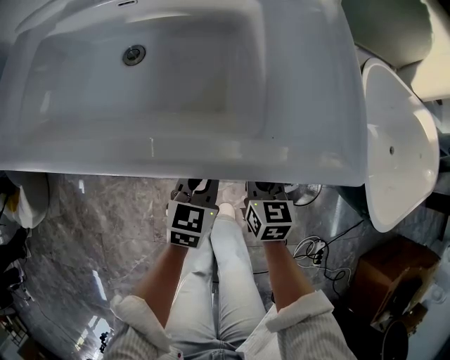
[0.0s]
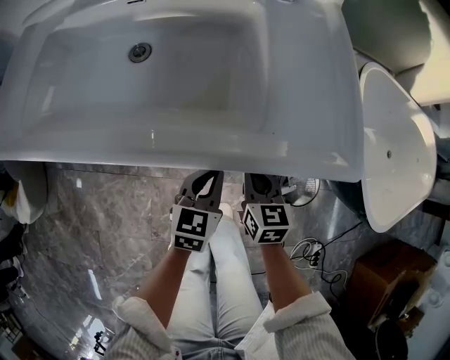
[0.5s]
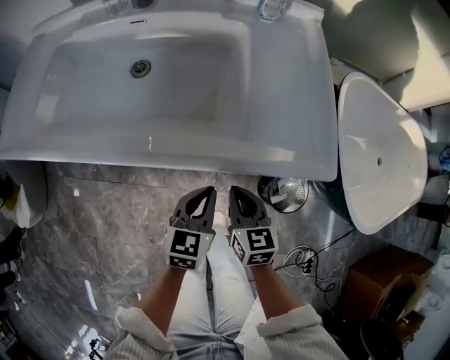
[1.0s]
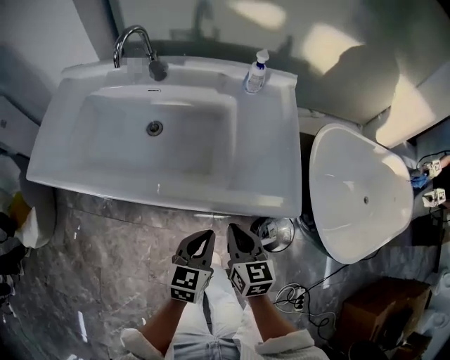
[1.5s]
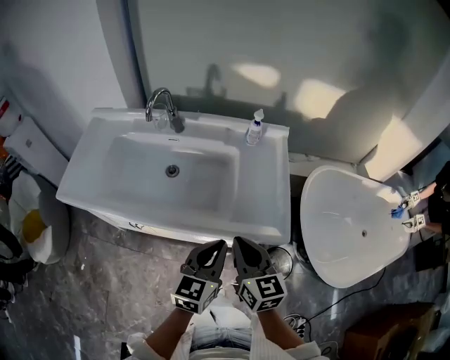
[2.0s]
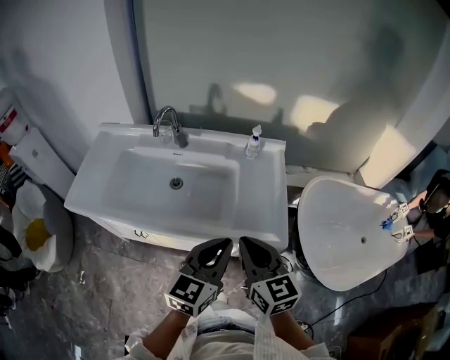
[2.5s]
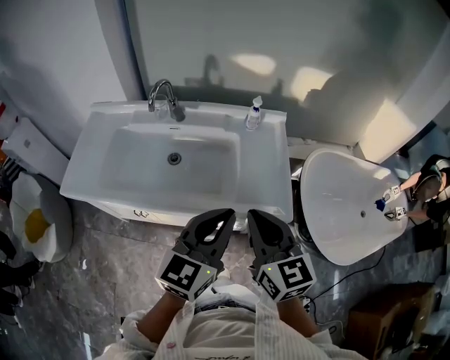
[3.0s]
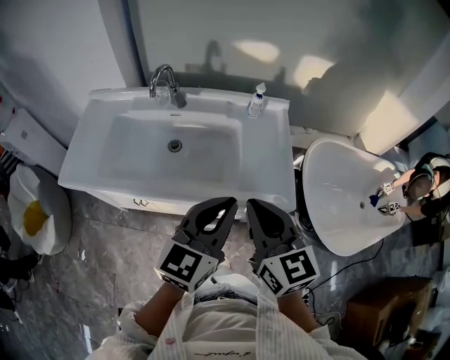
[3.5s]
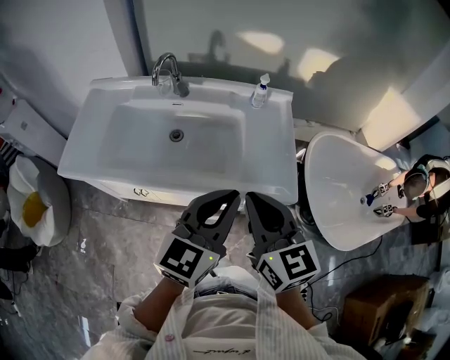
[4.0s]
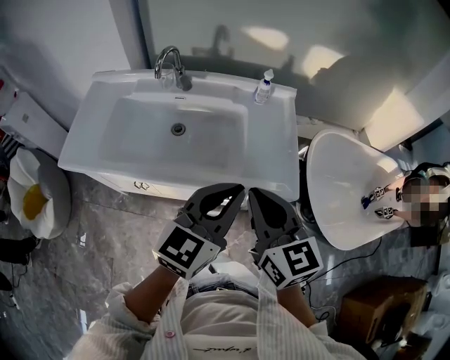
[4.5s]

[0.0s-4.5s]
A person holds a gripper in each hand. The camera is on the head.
0.0s to 2.0s: The two grippers go approximately 30 cm upward. The right gripper rotates some 20 degrees.
2.0s to 4.5s: The two grippers go some 15 cm upward.

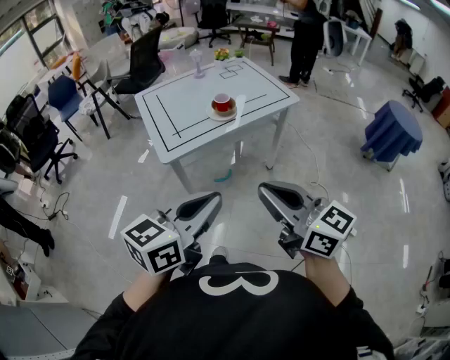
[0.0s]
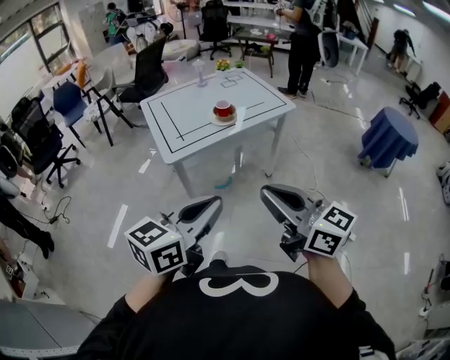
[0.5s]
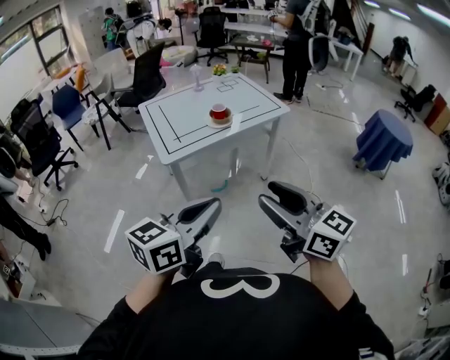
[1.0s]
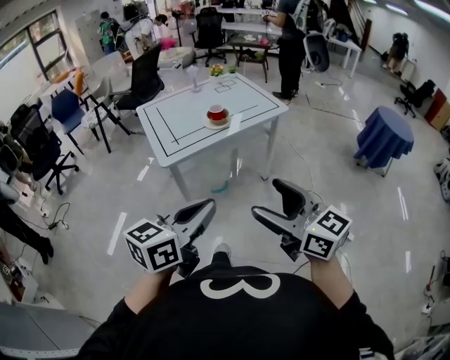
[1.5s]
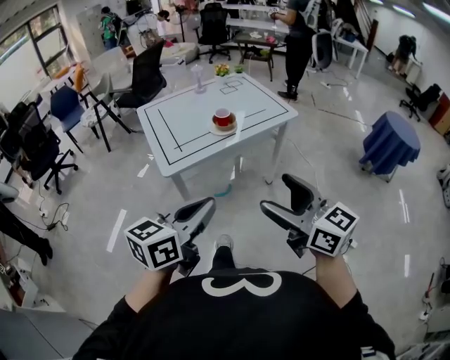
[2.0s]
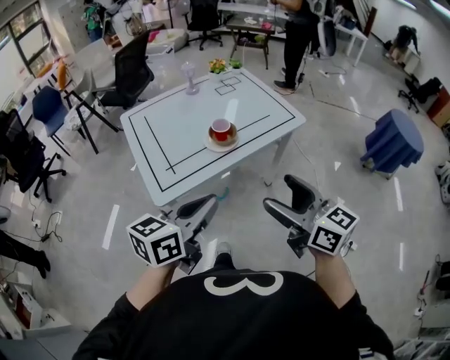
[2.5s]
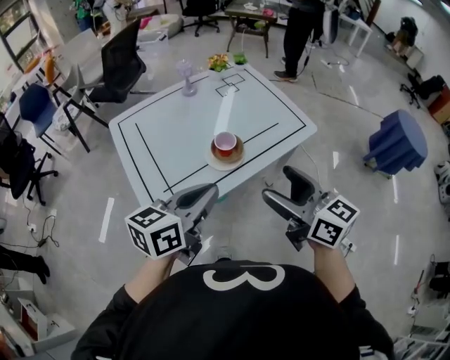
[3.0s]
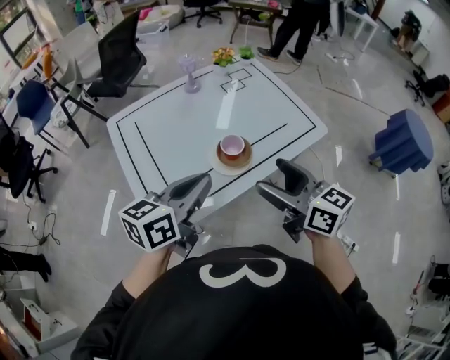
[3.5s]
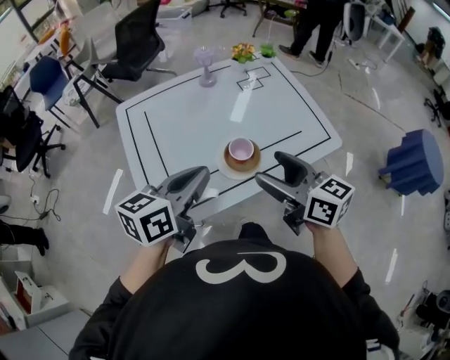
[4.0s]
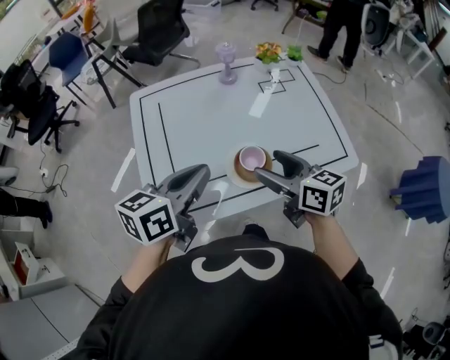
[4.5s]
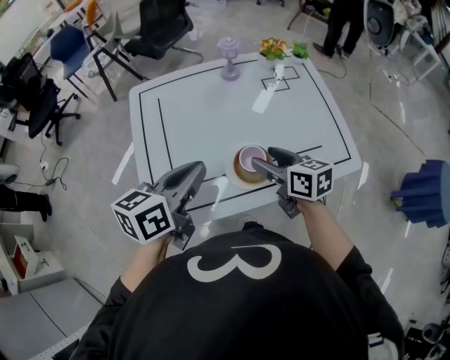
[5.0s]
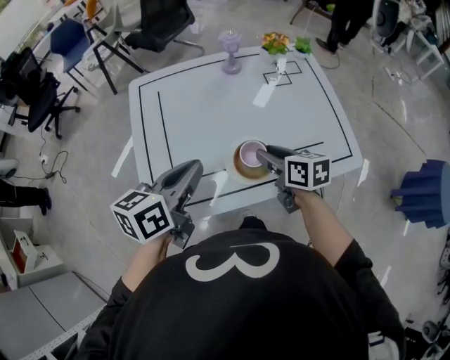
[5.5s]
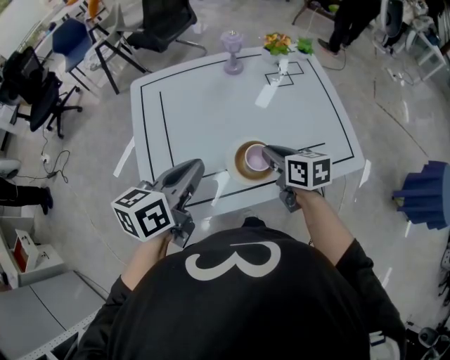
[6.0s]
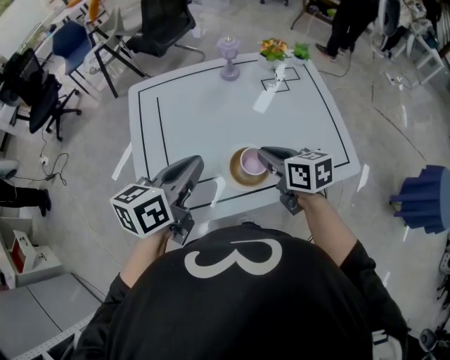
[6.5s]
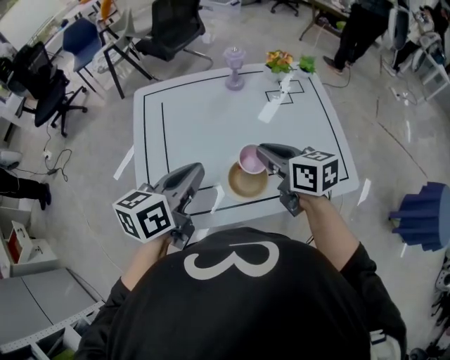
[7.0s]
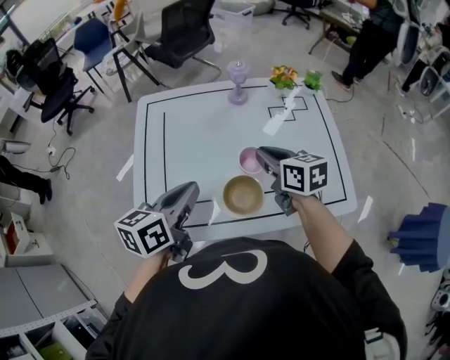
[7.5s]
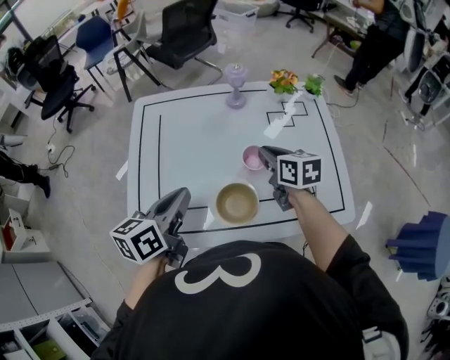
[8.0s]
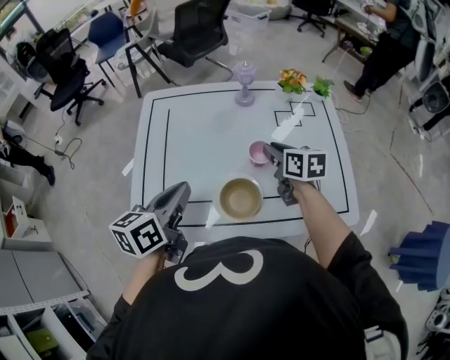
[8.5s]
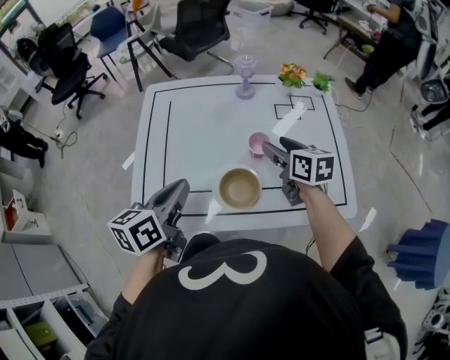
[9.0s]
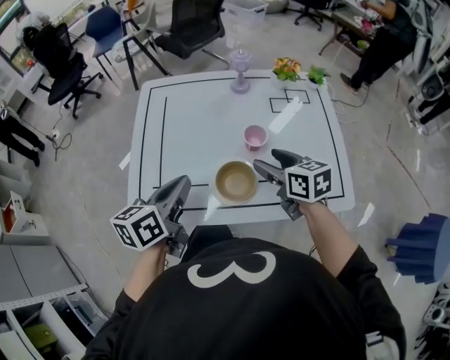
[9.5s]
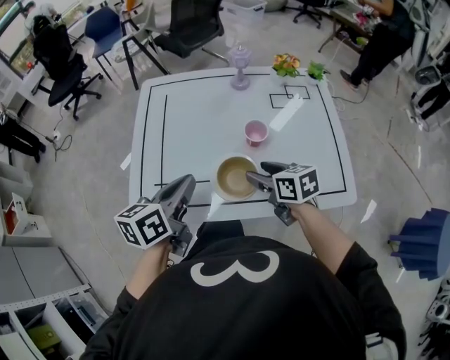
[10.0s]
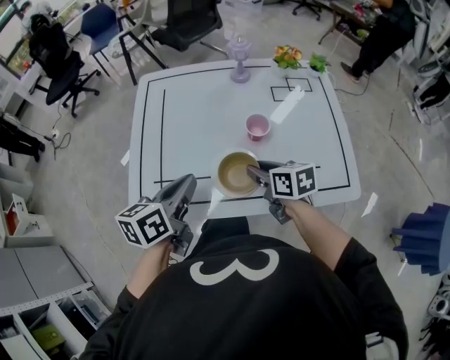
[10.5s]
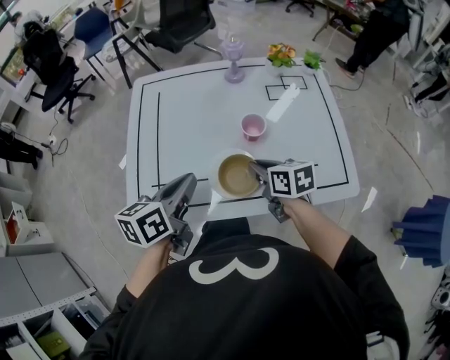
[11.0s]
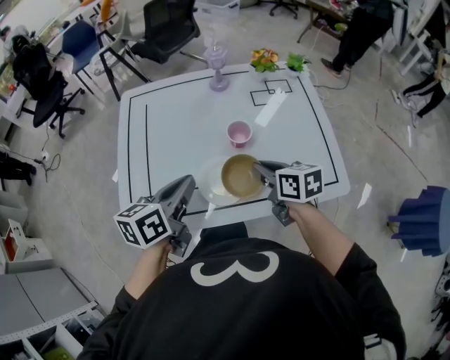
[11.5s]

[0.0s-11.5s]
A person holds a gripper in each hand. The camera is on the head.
0.0s to 2.0s: The right gripper goes backward and returns, roughly 10 cm each way, and opens its fingers; the left gripper goes backward and returns, approximately 10 cm each way.
2.0s to 4.0s: Both grippers are carried forward, about 40 cm.
4.0s to 6.0s: The right gripper travels downward and forward by about 20 cm, turns by approximately 30 degrees, and closes up, while the left gripper is displaced forward by approximately 5 cm.
6.0s to 7.5s: The right gripper travels forward and upward by approximately 10 cm.
7.5s to 9.5s: The right gripper moves some 5 cm, and opens.
9.5s to 11.5s: The right gripper closes its fingers.

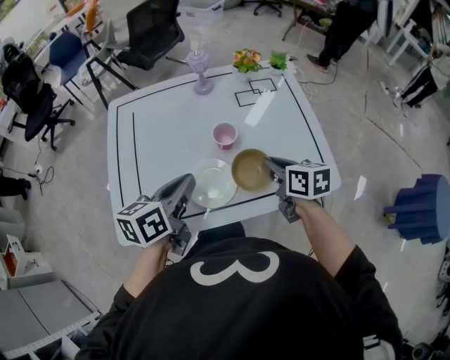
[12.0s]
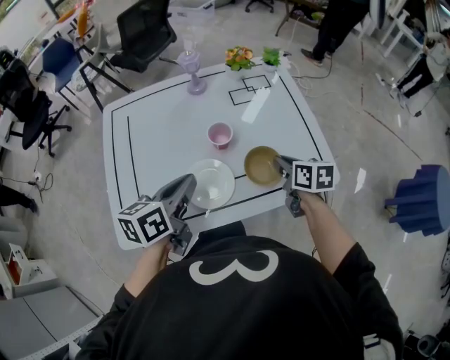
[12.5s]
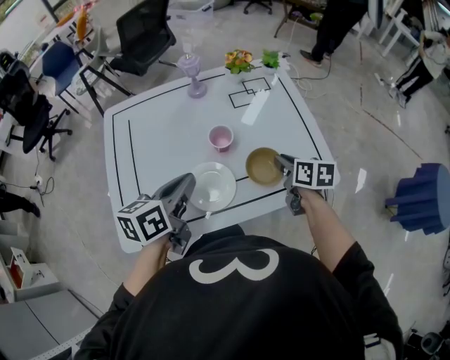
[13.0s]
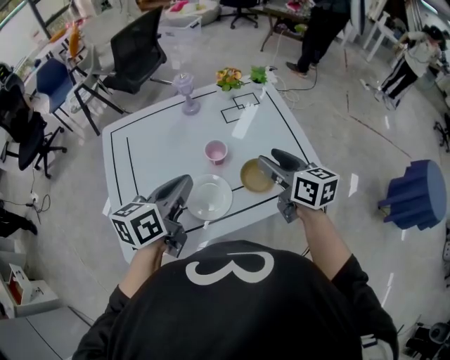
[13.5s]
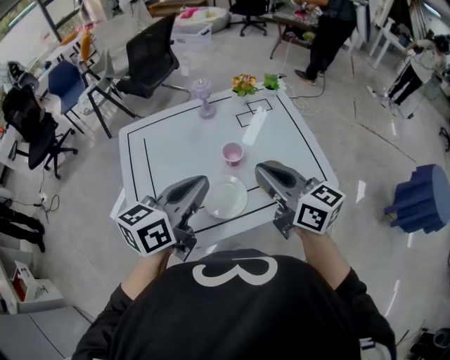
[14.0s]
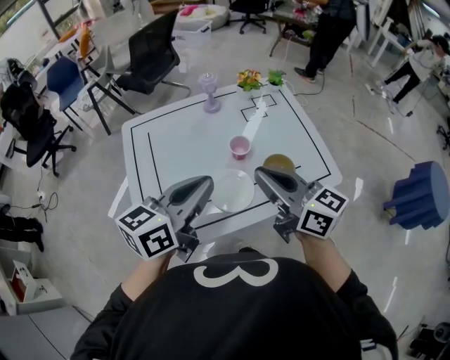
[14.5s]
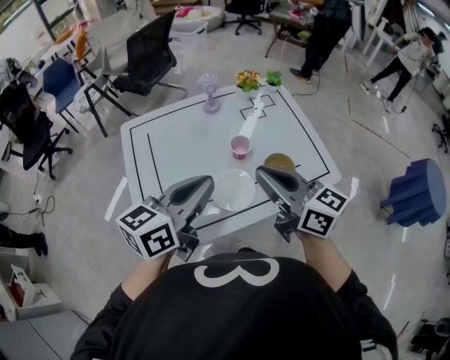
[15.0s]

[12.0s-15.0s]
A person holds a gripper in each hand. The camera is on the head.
12.0s to 13.5s: The right gripper moves upward, roughly 10 cm, and opens its fingers; the left gripper shifts some 5 cm upward.
13.5s to 15.0s: The left gripper shifts approximately 10 cm upward and backward, while the right gripper is displaced to the left, backward and upward by some 20 cm, changes its angle by approximately 20 degrees, and closes up.

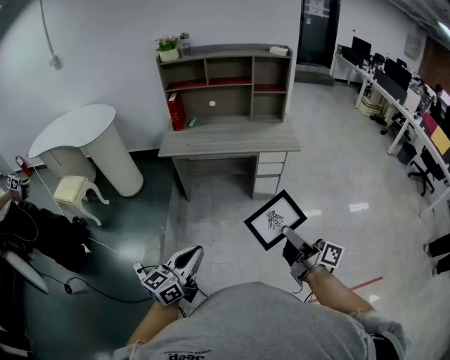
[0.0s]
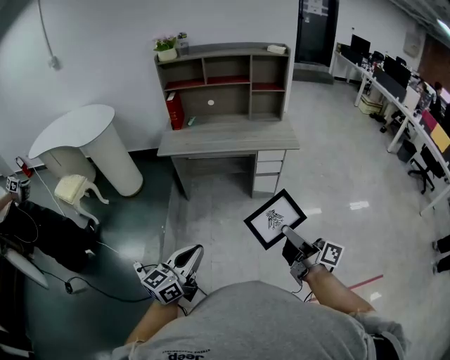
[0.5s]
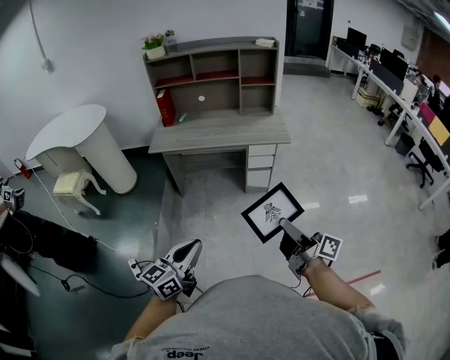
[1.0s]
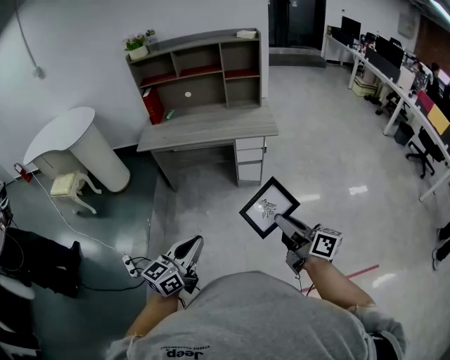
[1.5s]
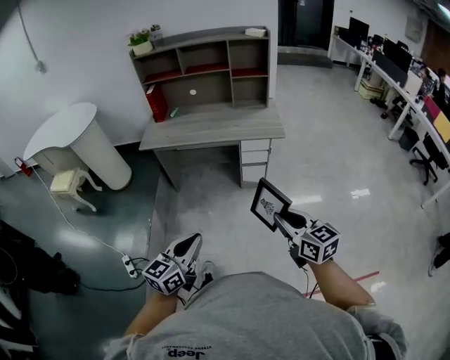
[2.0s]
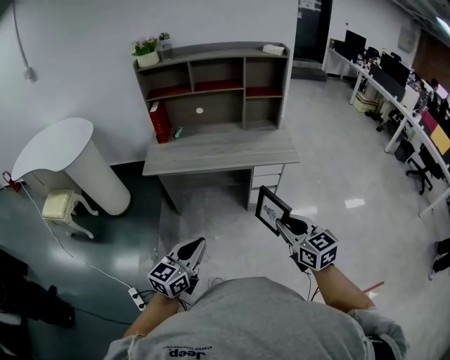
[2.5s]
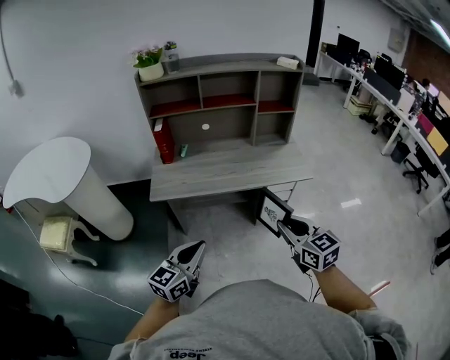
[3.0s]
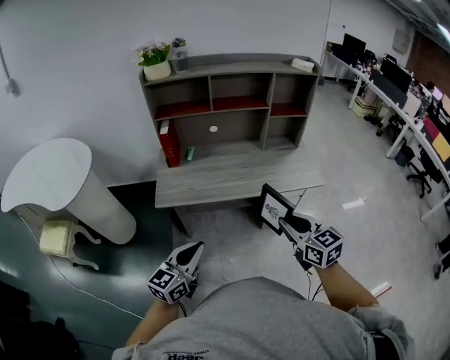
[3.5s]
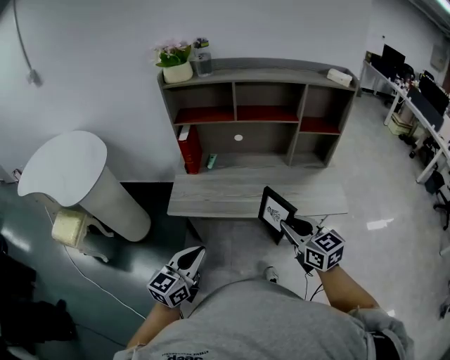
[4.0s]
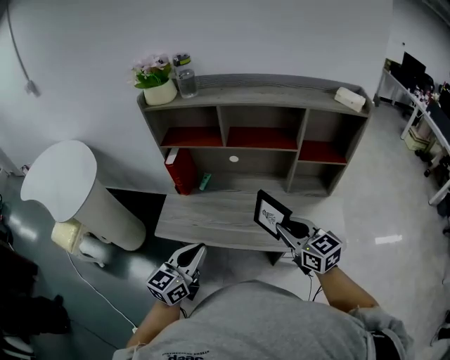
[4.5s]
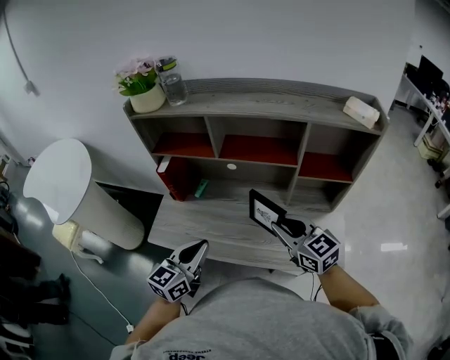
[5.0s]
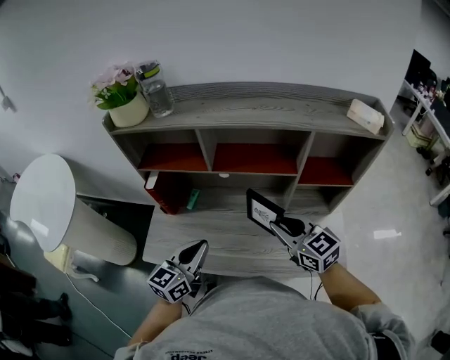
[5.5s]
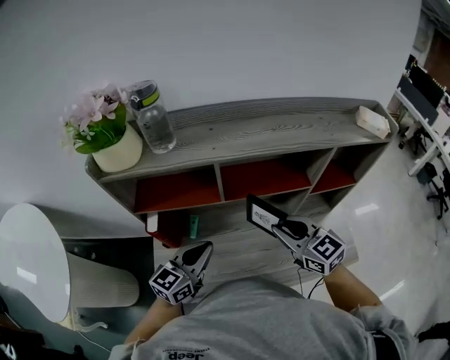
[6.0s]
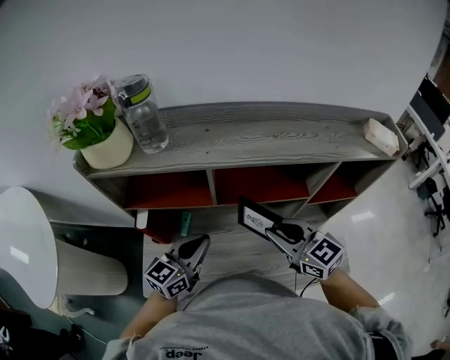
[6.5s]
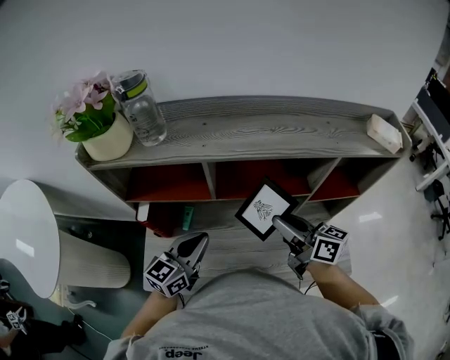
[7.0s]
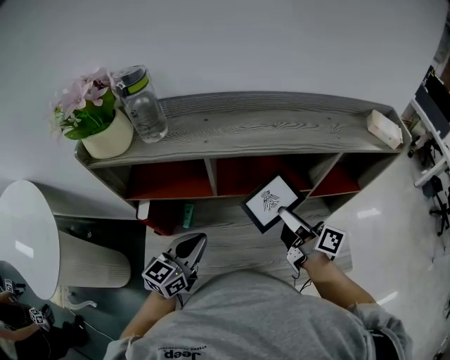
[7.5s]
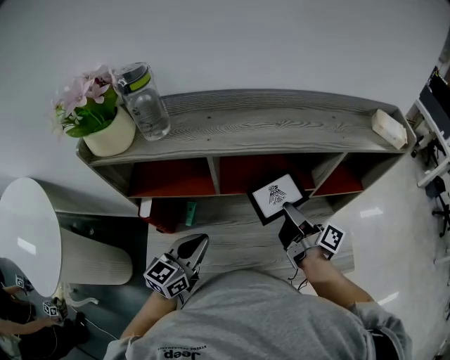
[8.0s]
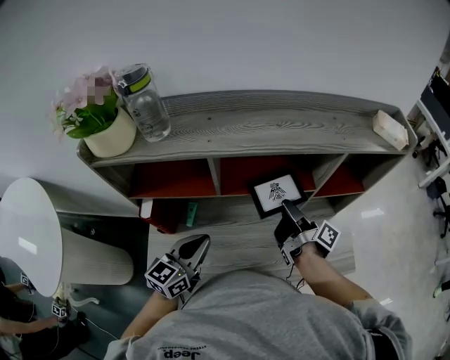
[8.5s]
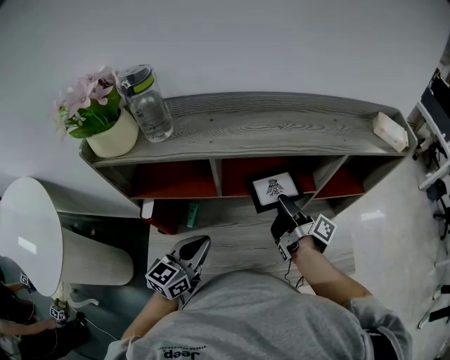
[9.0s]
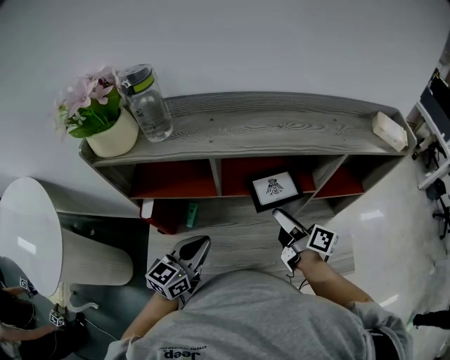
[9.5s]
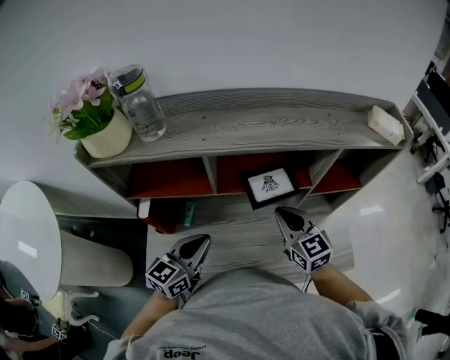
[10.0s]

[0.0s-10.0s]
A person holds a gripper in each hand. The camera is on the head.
0.0s to 2.0s: The grippers both shift to the right by approximately 15 cm. The right gripper twists approximately 50 degrees counterclockwise, seen from behind.
2.0s to 4.0s: The two grippers travel together, forward and to the left, approximately 50 cm.
4.0s to 6.0s: Both grippers travel together forward, roughly 40 cm.
6.0s to 8.0s: The right gripper shifts some 10 cm to the right and forward, and rotates around the line of its fingers by approximately 80 degrees, clockwise from behind.
8.0s to 10.0s: The right gripper rolls counterclockwise, seen from behind, by roughly 80 degrees, and opens, then closes once more.
